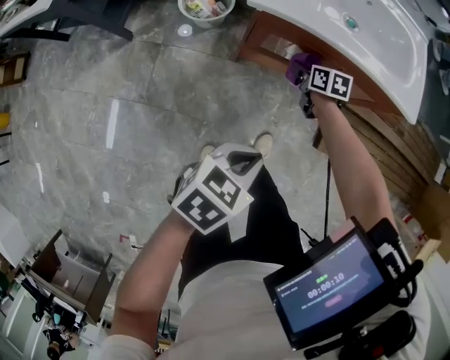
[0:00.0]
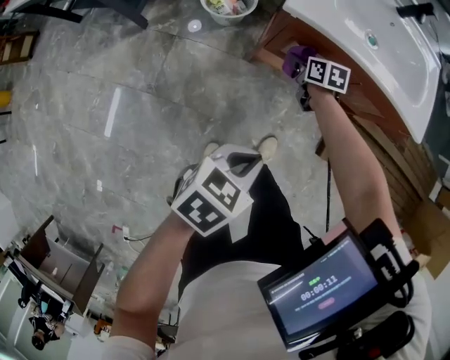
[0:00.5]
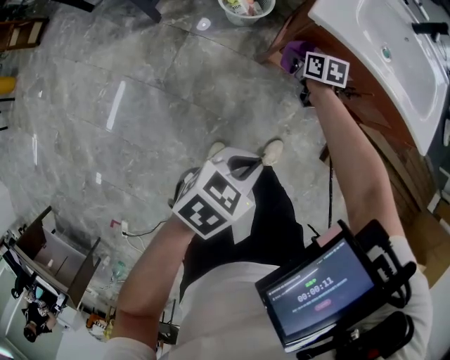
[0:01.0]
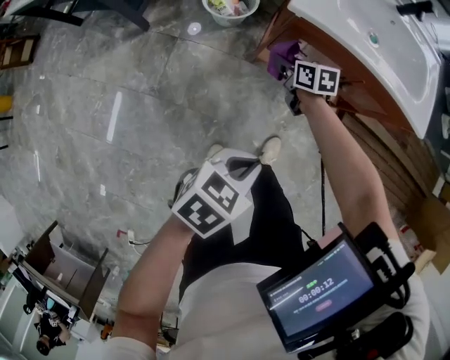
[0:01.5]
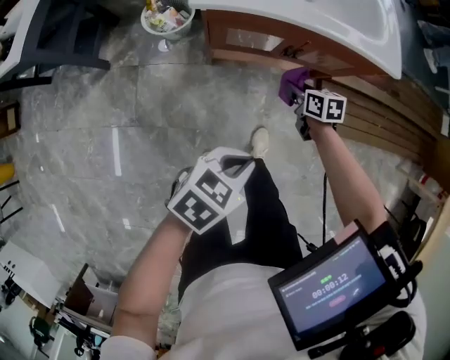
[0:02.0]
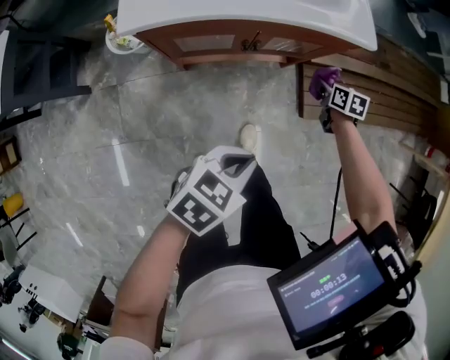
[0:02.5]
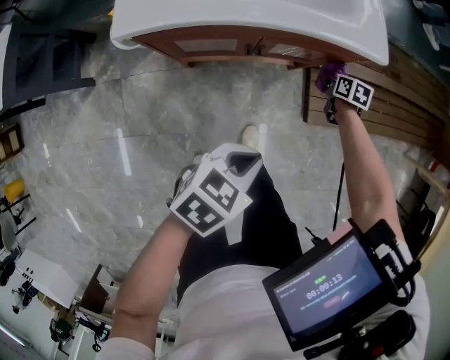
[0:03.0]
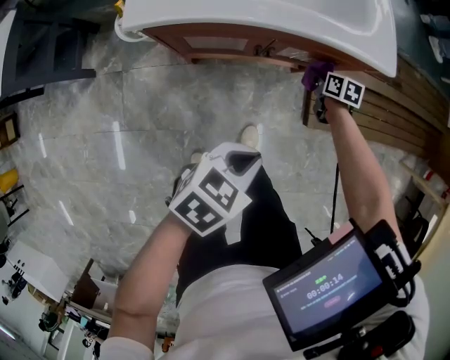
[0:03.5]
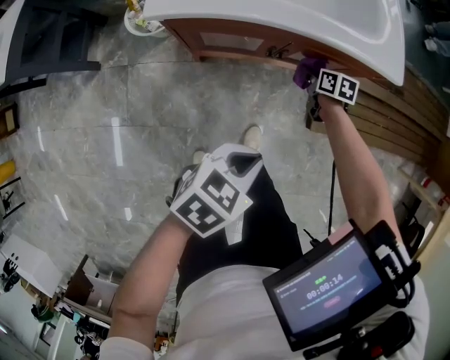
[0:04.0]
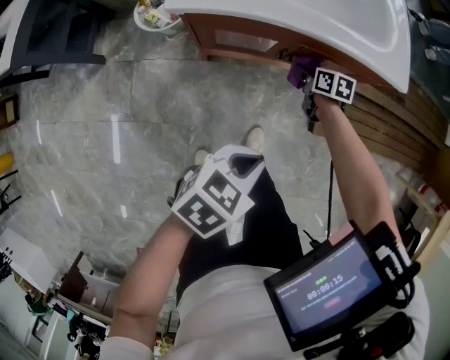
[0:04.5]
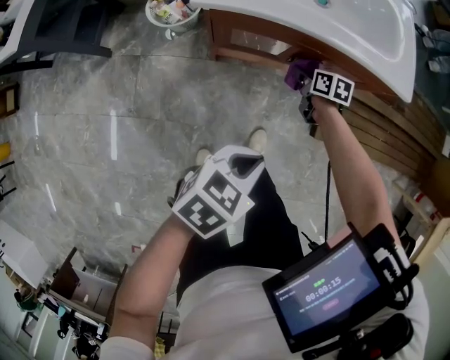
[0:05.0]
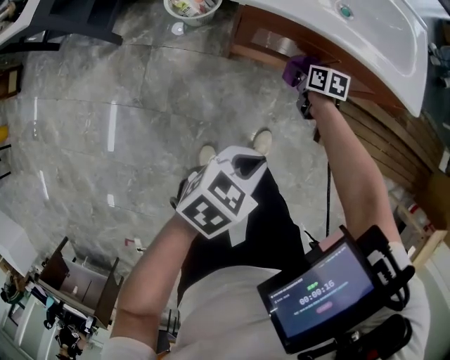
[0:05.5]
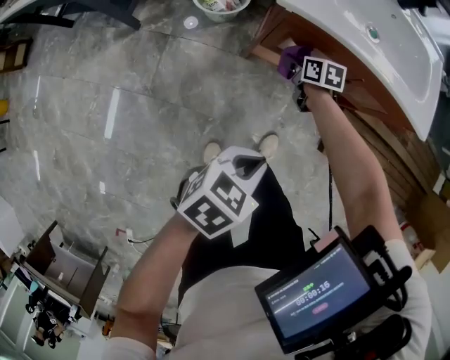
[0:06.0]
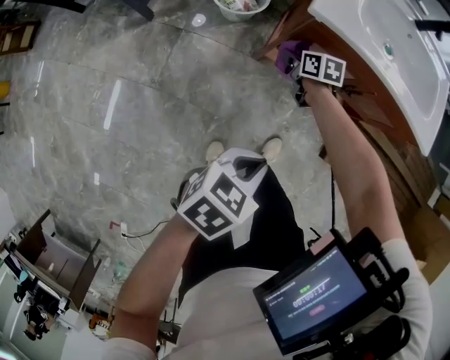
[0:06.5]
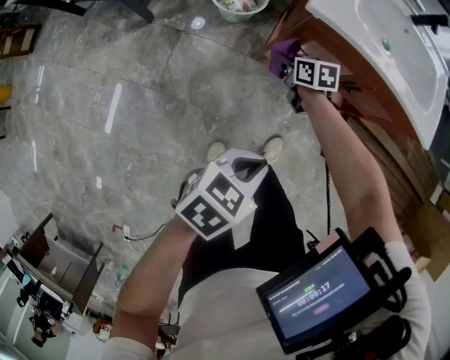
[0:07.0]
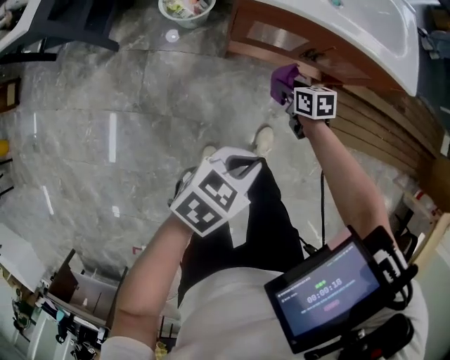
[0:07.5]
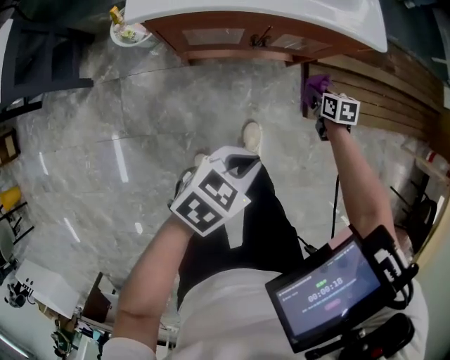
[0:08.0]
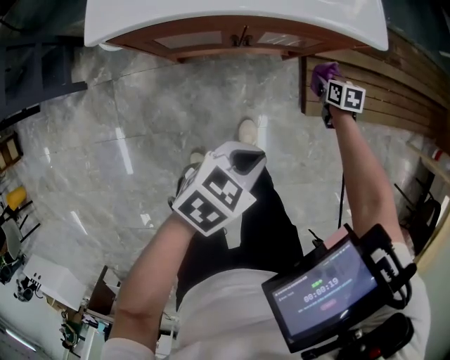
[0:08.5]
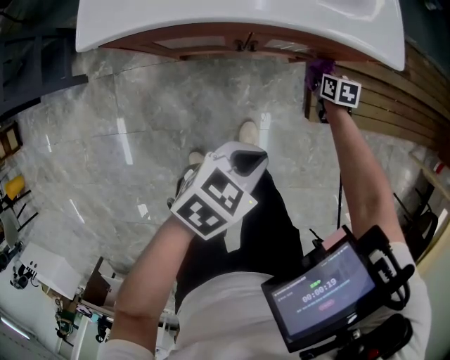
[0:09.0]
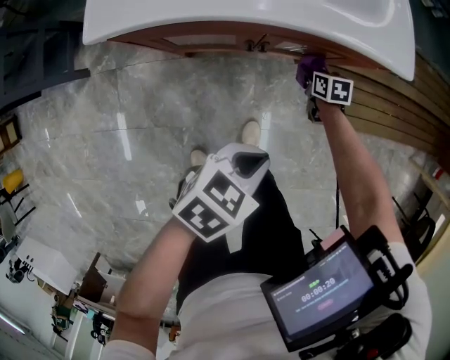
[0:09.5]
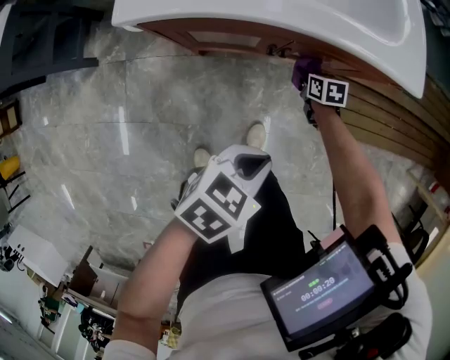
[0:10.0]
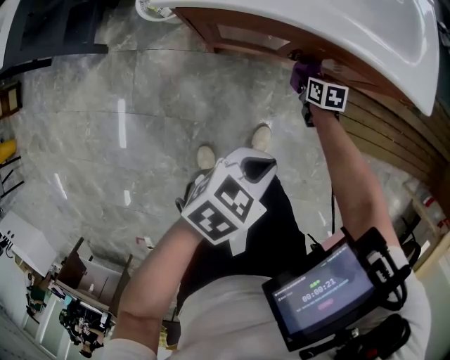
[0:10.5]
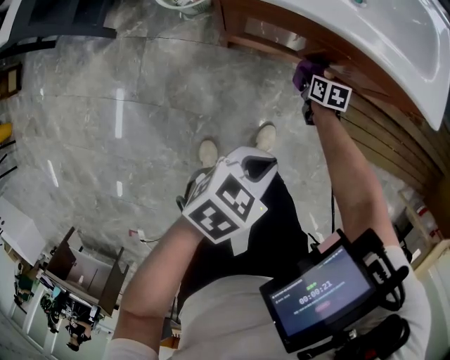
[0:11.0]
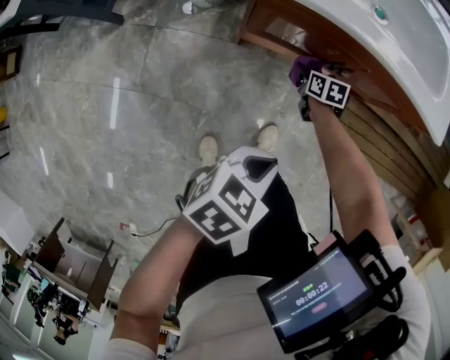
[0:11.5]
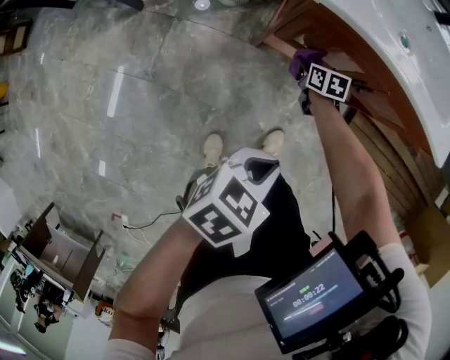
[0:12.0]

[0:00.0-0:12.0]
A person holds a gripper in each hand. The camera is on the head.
0:00.0 to 0:02.0: The right gripper shifts roughly 15 cm to the right and backward. The left gripper goes to the left and returns, some 10 cm each way.
0:02.0 to 0:04.0: The left gripper travels forward and to the right by about 10 cm. Meanwhile the right gripper heads forward and downward, covering approximately 15 cm, and goes to the right and returns, about 20 cm each way.
0:04.0 to 0:06.0: The left gripper moves to the left and backward, approximately 15 cm, while the right gripper is displaced to the left by approximately 30 cm, and changes its angle by approximately 20 degrees.
0:06.0 to 0:08.0: The right gripper changes place by roughly 40 cm, and changes its angle by about 20 degrees. The left gripper changes place by about 15 cm, and rotates roughly 20 degrees.
0:08.0 to 0:10.0: The right gripper heads to the left, downward and forward, covering some 15 cm. The left gripper is displaced forward by some 10 cm.
0:10.0 to 0:12.0: The left gripper moves to the left and backward, approximately 20 cm; the right gripper heads to the left, covering some 30 cm.

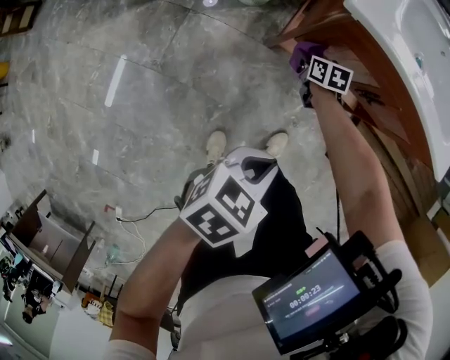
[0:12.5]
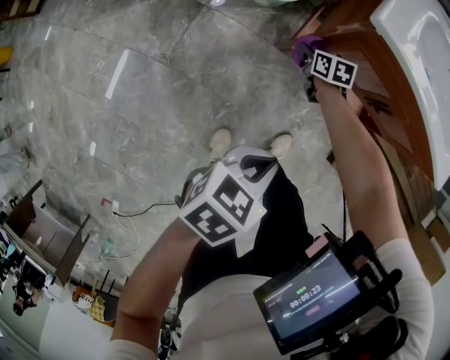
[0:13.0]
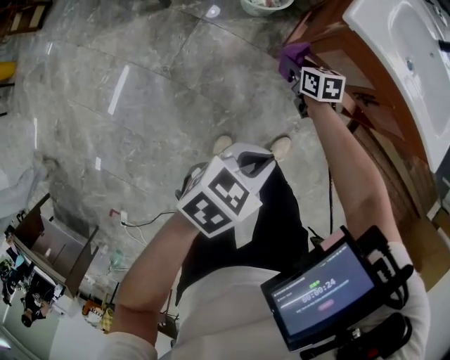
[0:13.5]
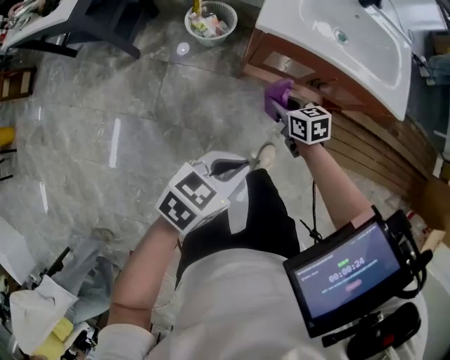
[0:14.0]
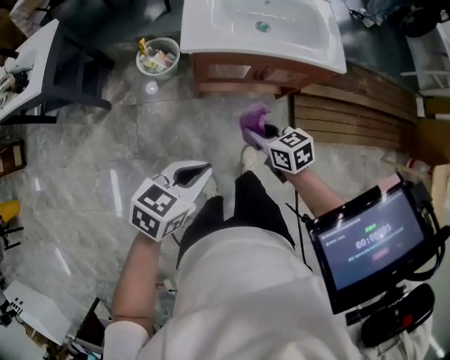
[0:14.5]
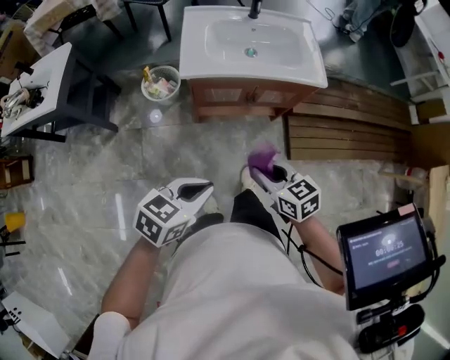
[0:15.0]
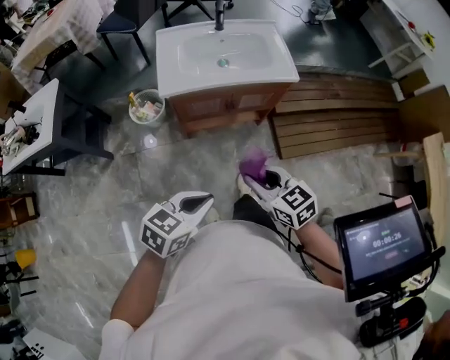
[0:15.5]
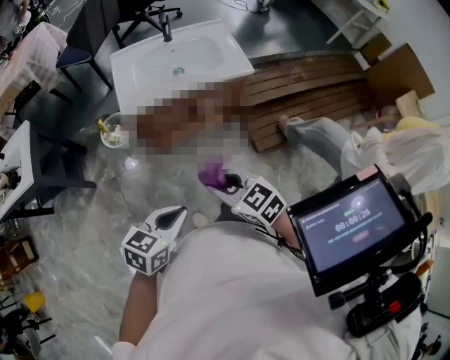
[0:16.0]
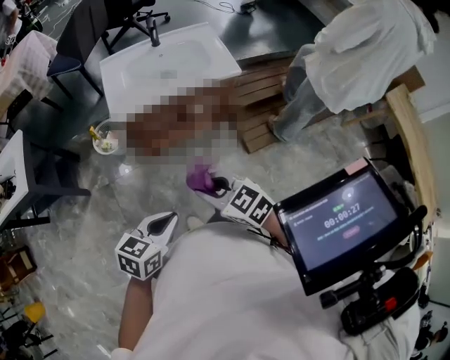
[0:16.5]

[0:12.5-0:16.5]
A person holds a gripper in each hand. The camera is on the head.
0:12.5 to 0:14.5: The left gripper heads upward, covering about 25 cm, while the right gripper goes roughly 50 cm upward and backward.
0:14.5 to 0:16.5: The left gripper goes roughly 10 cm backward, to the right and upward. Meanwhile the right gripper is displaced upward and backward by some 20 cm.

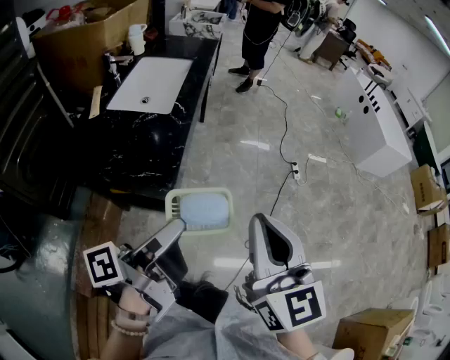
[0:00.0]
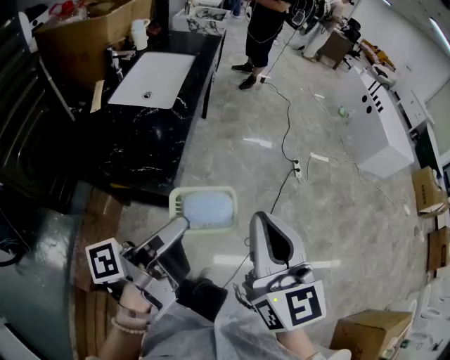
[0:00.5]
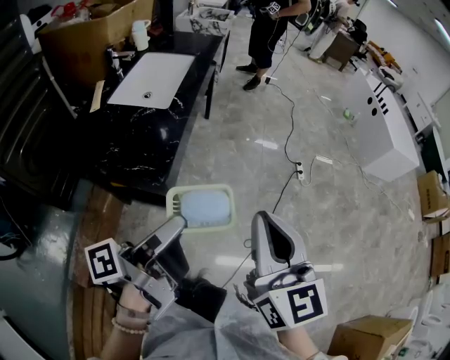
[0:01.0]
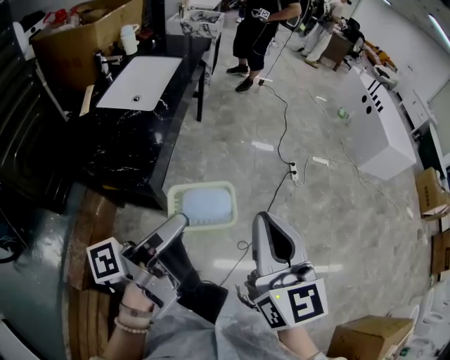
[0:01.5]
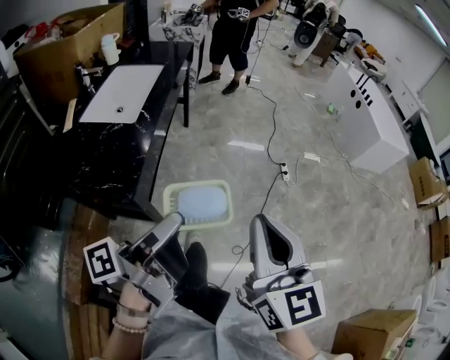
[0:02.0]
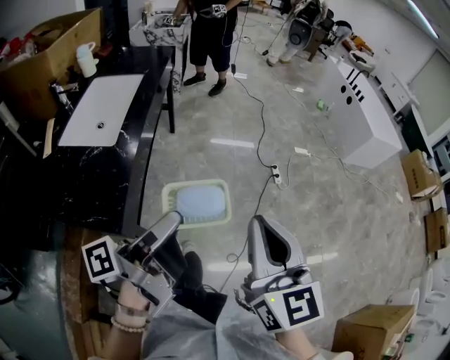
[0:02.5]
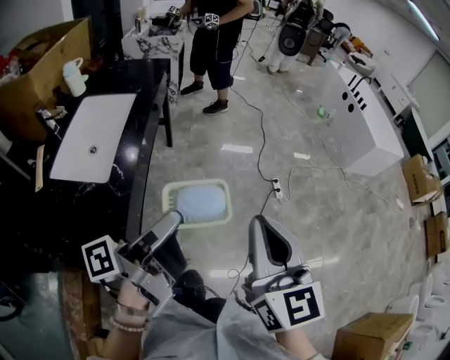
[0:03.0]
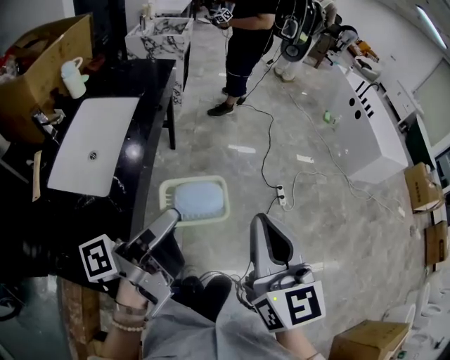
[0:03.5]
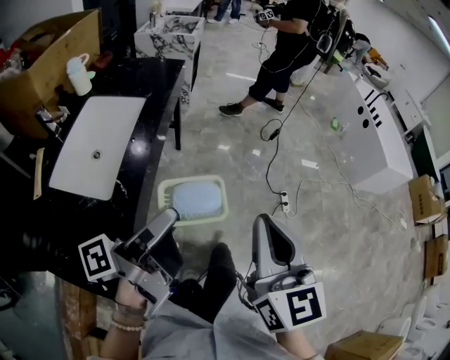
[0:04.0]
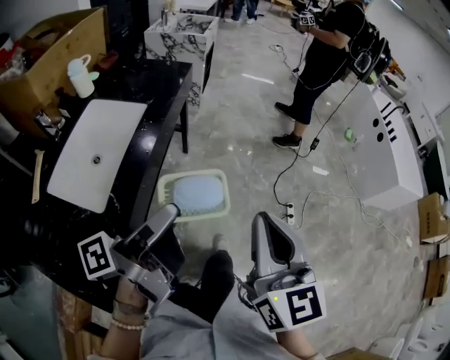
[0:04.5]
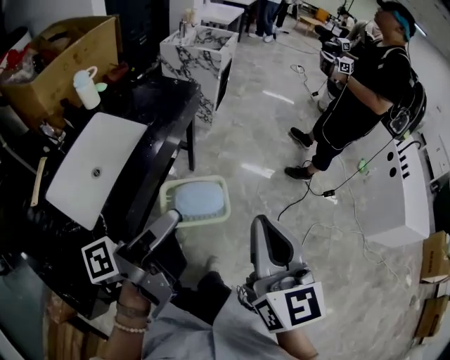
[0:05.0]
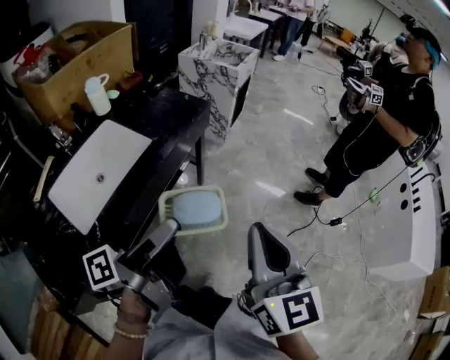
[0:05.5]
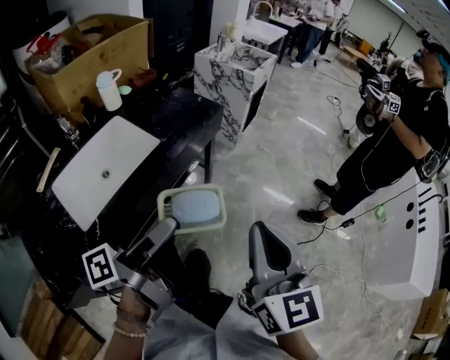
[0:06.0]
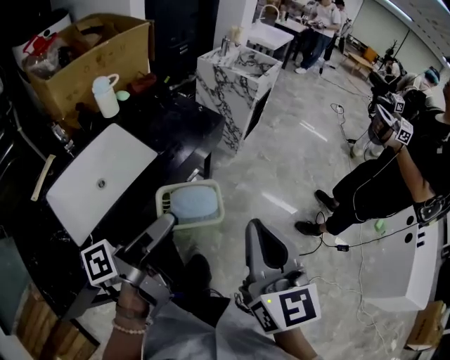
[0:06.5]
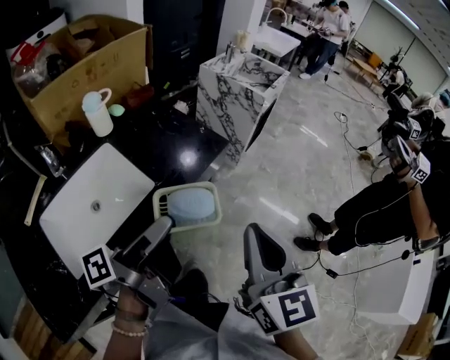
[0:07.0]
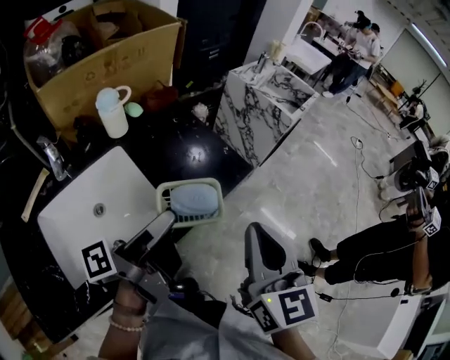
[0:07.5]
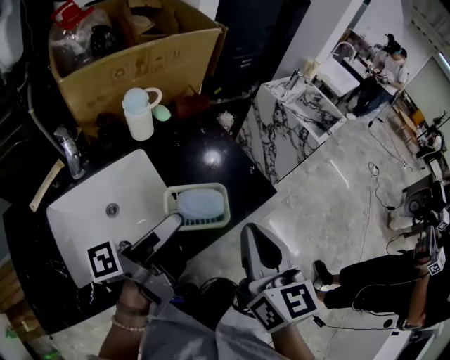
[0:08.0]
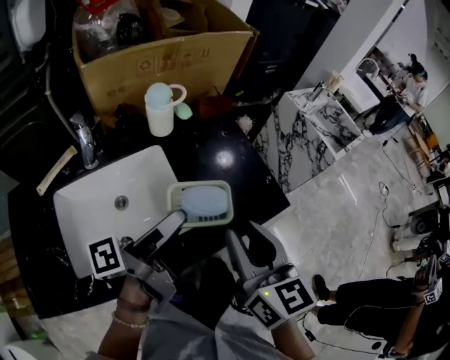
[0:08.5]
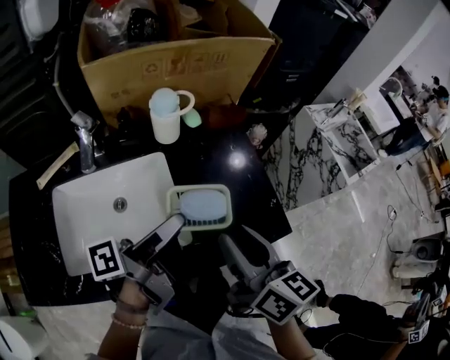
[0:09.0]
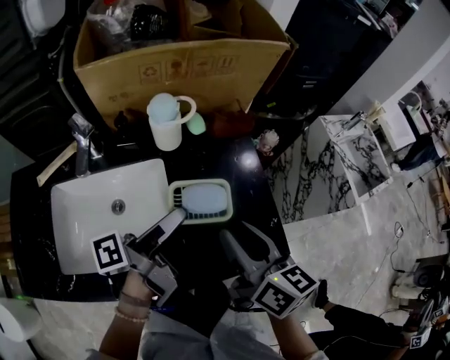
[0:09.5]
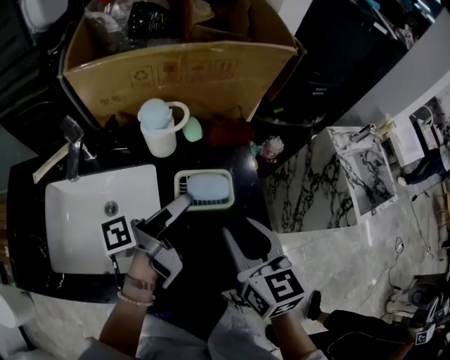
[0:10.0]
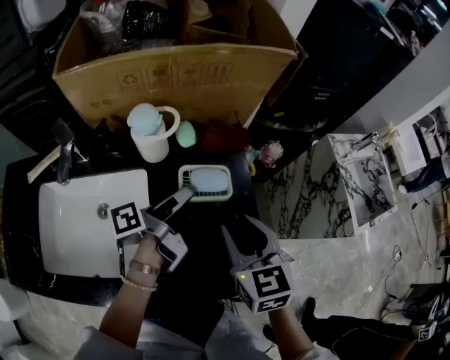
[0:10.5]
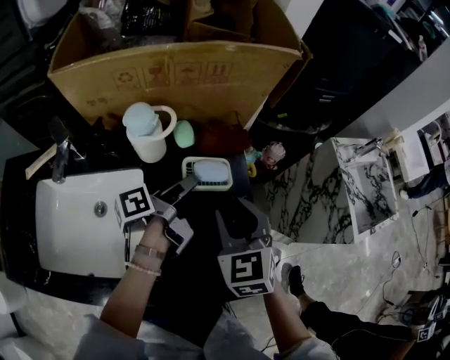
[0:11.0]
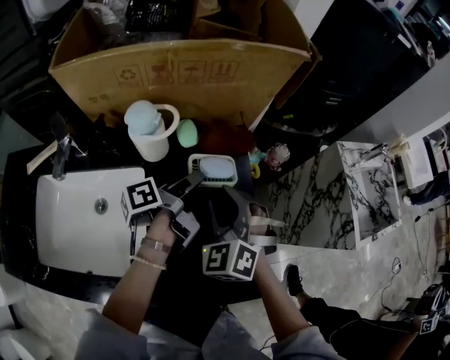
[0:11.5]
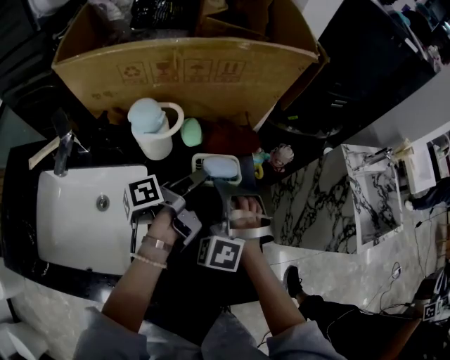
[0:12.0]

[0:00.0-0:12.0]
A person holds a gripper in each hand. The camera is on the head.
0:00.0 to 0:02.0: The right gripper moves about 15 cm.
0:02.0 to 0:04.0: The right gripper shifts by roughly 35 cm.
0:04.0 to 0:06.0: The right gripper ends up about 30 cm from where it was, and changes its angle by roughly 30 degrees.
0:06.0 to 0:08.0: The right gripper shifts by some 40 cm, and changes its angle by approximately 20 degrees.
0:08.0 to 0:10.0: The right gripper changes place by roughly 25 cm, changes its angle by roughly 40 degrees, and opens.
0:10.0 to 0:12.0: The right gripper ends up some 20 cm from where it was, and rolls counterclockwise, seen from behind, by roughly 80 degrees.
